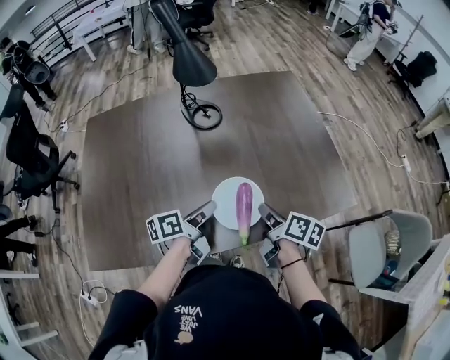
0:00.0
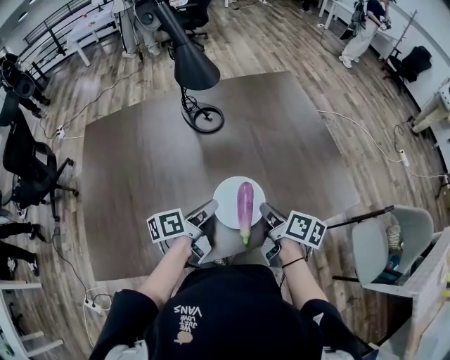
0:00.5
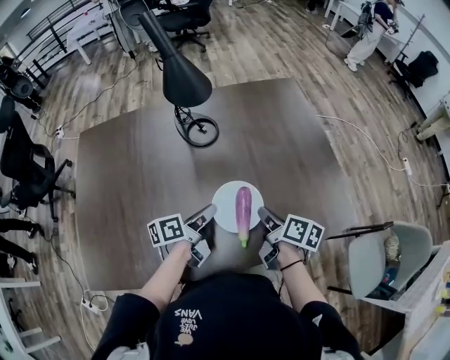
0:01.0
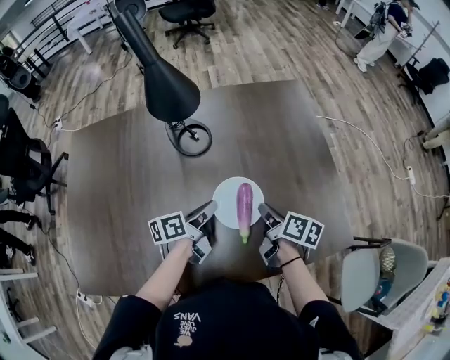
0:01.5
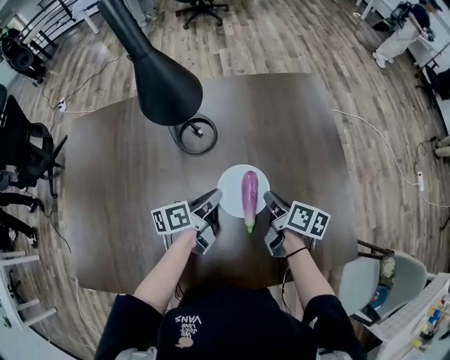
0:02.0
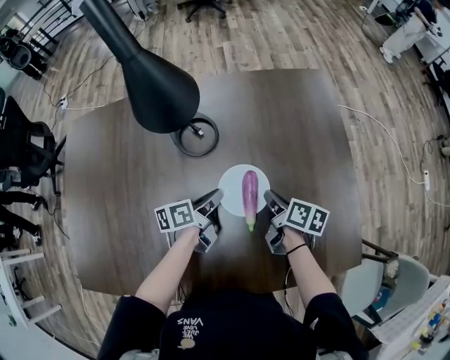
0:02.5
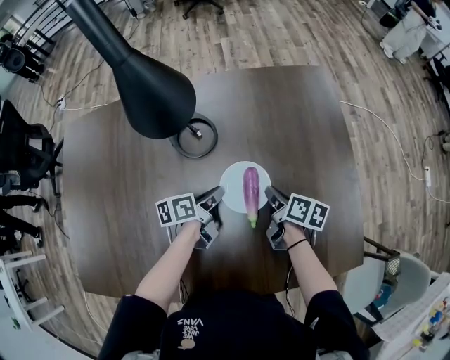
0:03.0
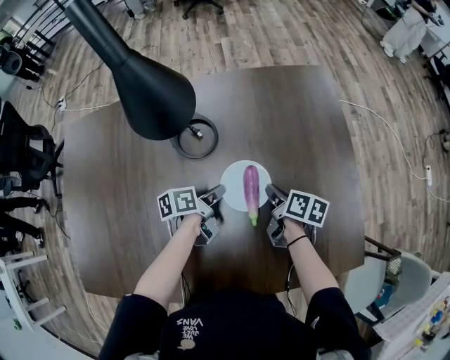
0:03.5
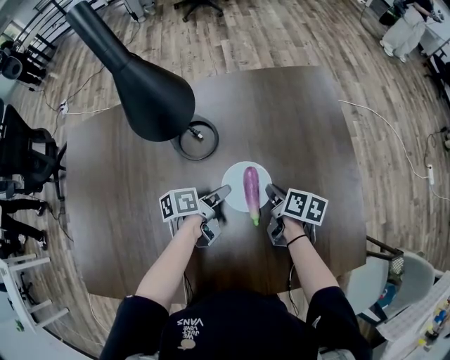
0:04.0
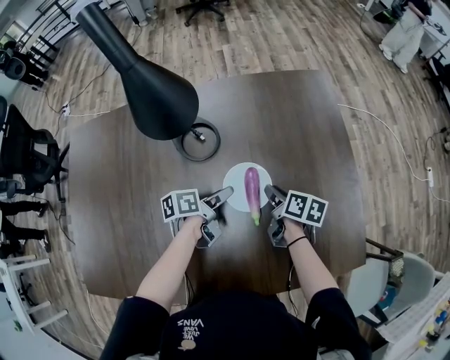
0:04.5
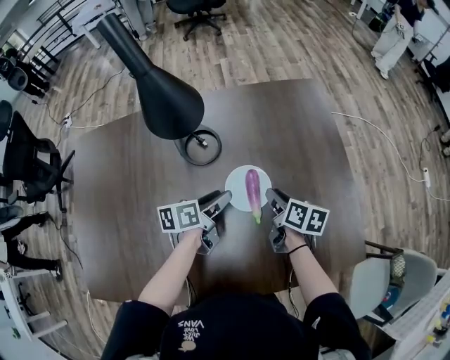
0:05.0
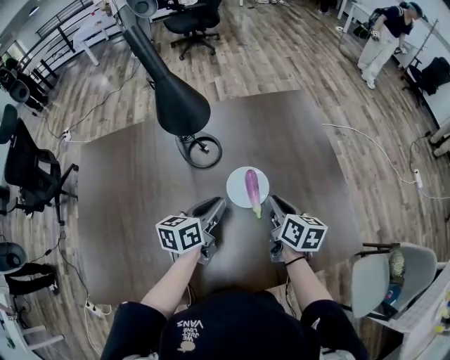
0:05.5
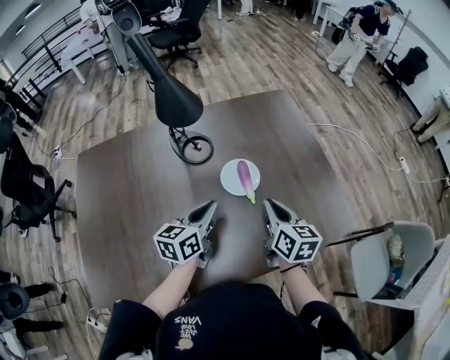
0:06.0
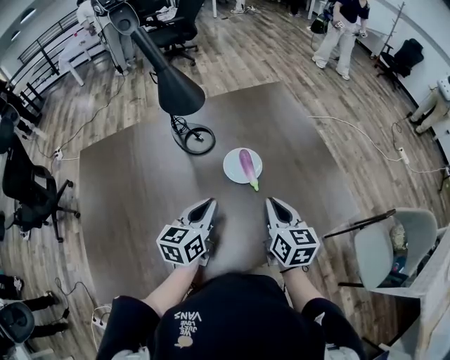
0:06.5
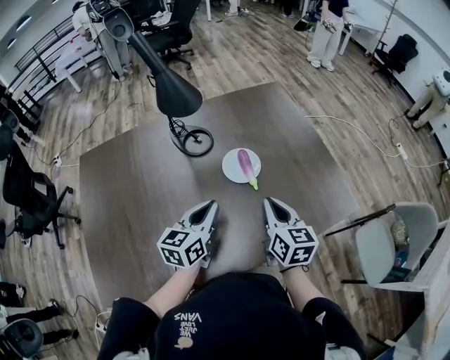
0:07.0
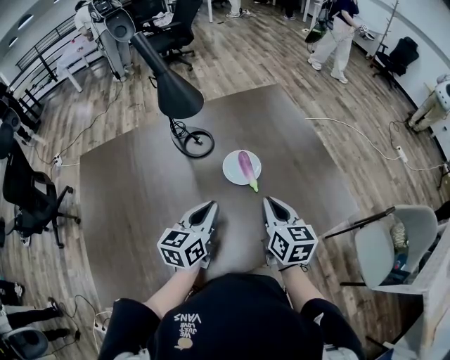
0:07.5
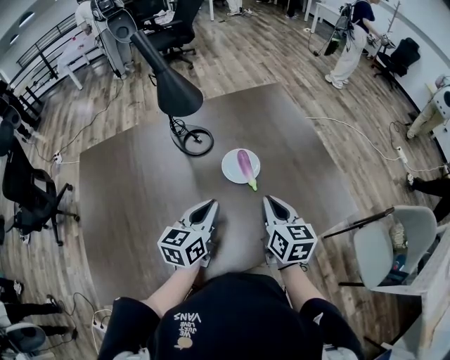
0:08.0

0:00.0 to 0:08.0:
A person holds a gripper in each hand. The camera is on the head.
0:00.0 to 0:02.0: Both grippers travel together forward, some 25 cm.
0:02.0 to 0:04.0: Both grippers travel together downward, some 5 cm. The left gripper opens its fingers.
0:04.0 to 0:06.0: The two grippers go approximately 25 cm upward and backward. The right gripper changes its angle by roughly 40 degrees, while the left gripper rotates around the line of its fingers by some 50 degrees, clockwise from behind, and closes its fingers.
0:06.0 to 0:08.0: The two grippers go about 5 cm backward.

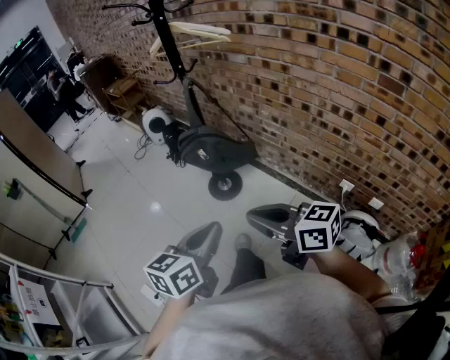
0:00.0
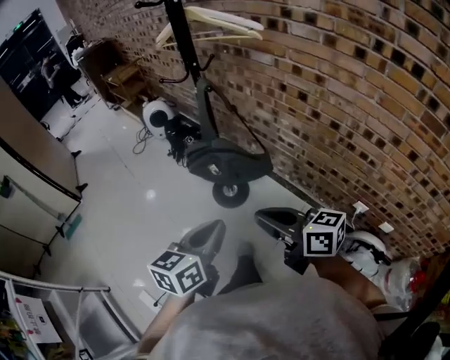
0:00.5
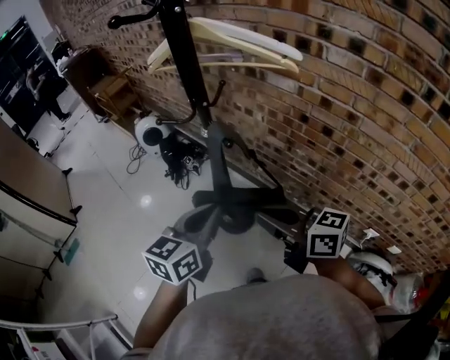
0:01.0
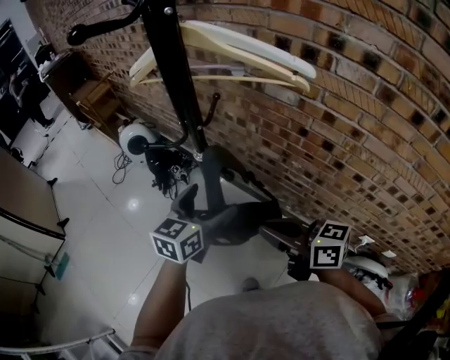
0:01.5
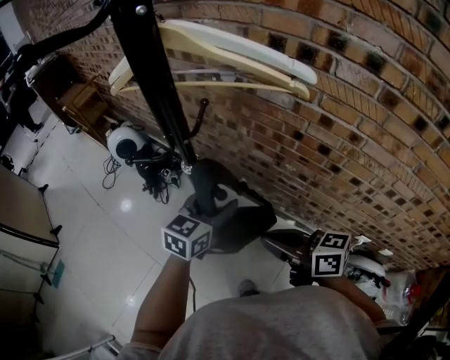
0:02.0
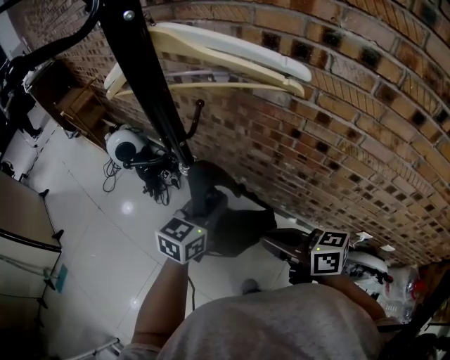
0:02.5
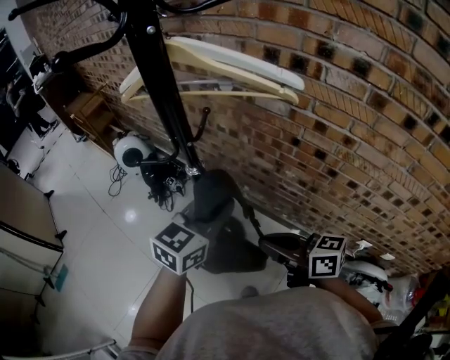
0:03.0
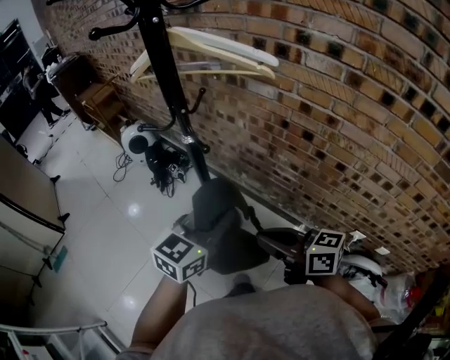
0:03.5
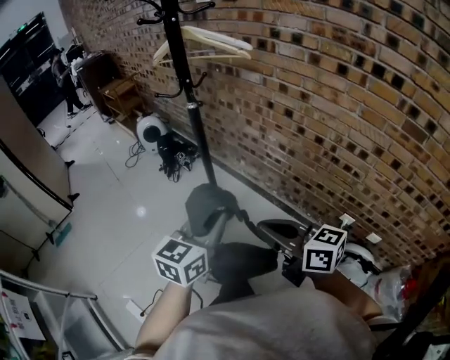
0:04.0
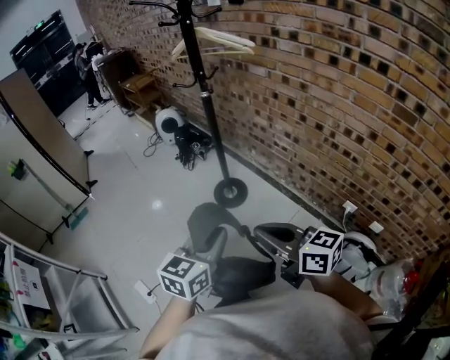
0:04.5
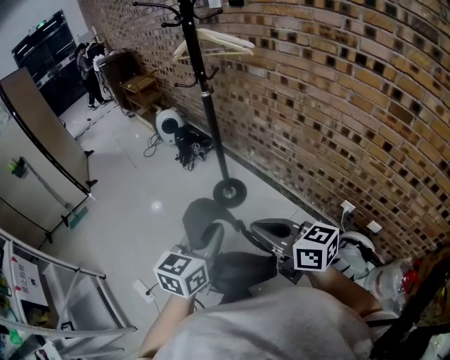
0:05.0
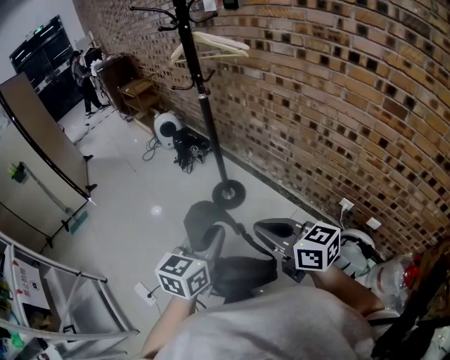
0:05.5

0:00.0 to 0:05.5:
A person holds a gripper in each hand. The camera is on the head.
0:00.0 to 0:02.0: The pair of grippers is taken forward, roughly 50 cm. The left gripper turns by approximately 20 degrees, and opens its fingers.
0:02.0 to 0:03.5: The right gripper moves backward, approximately 10 cm, while the left gripper travels backward and upward by some 20 cm, and closes up.
0:03.5 to 0:05.5: Both grippers move backward, some 35 cm. The left gripper swivels some 20 degrees.

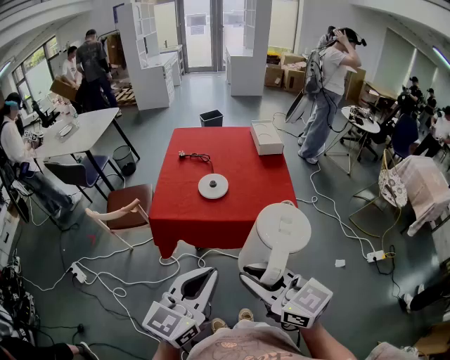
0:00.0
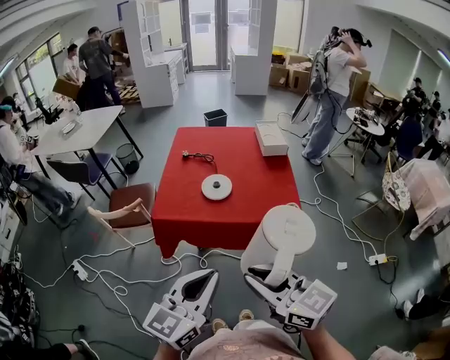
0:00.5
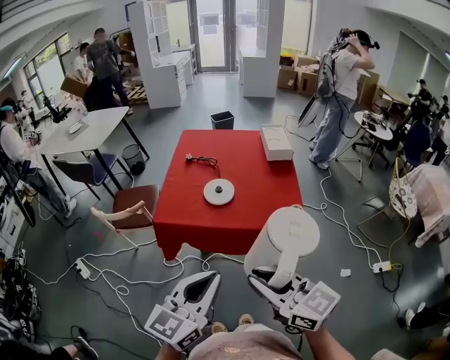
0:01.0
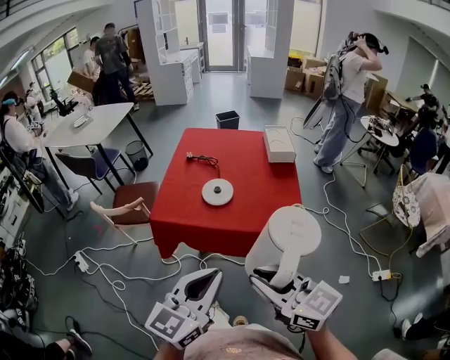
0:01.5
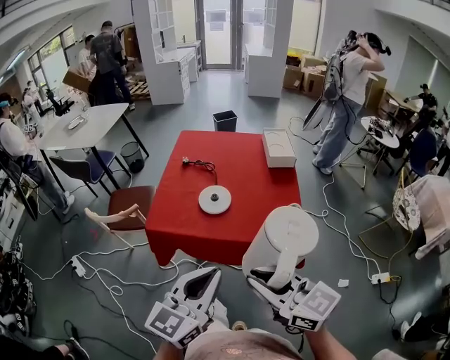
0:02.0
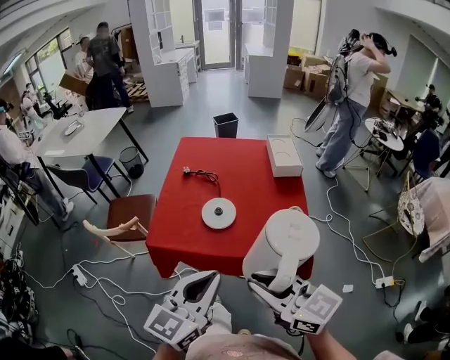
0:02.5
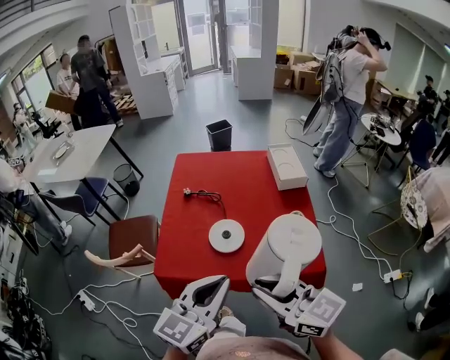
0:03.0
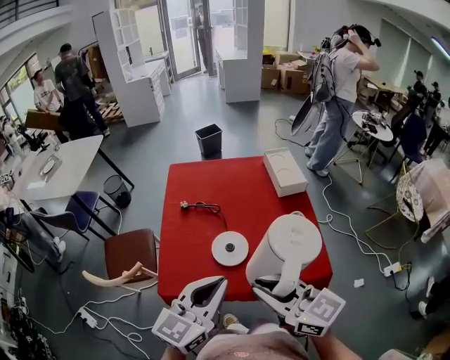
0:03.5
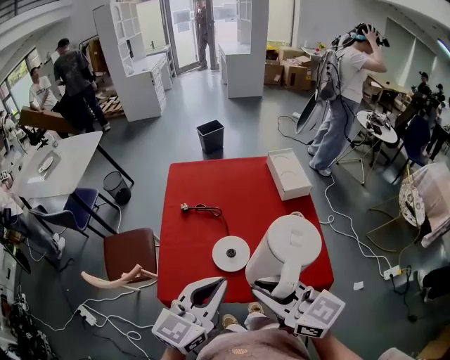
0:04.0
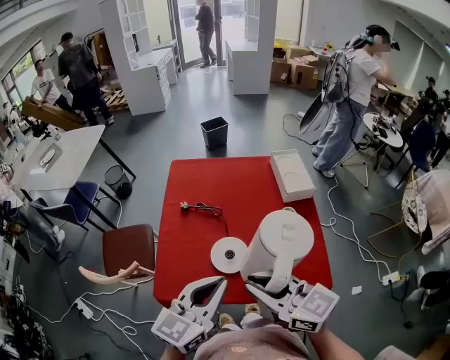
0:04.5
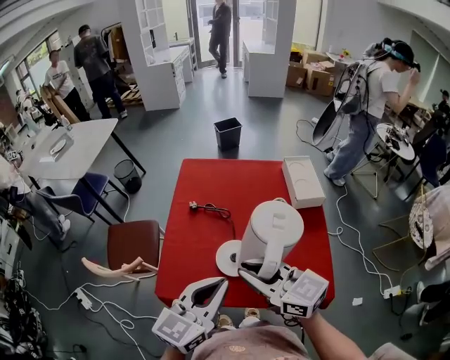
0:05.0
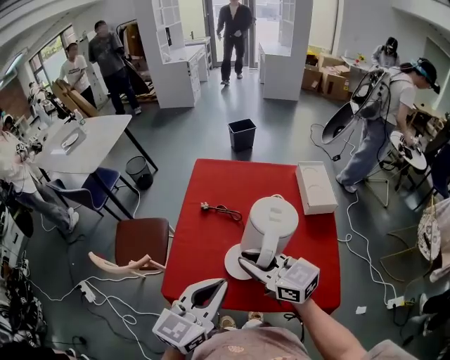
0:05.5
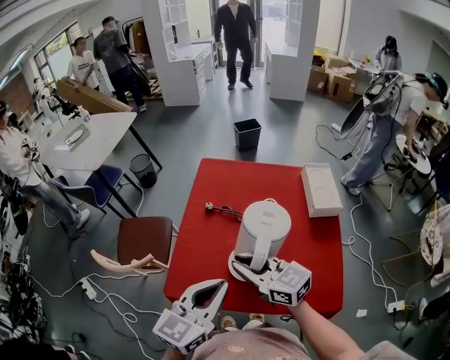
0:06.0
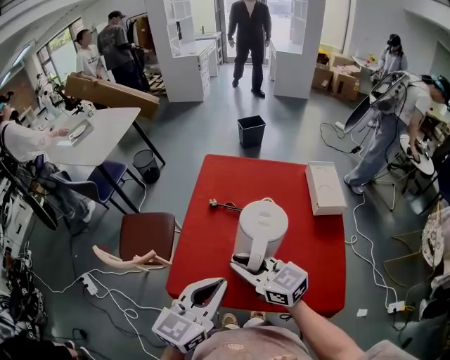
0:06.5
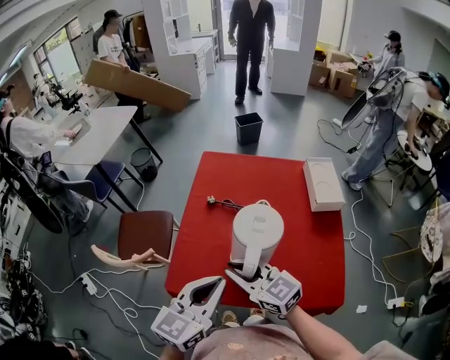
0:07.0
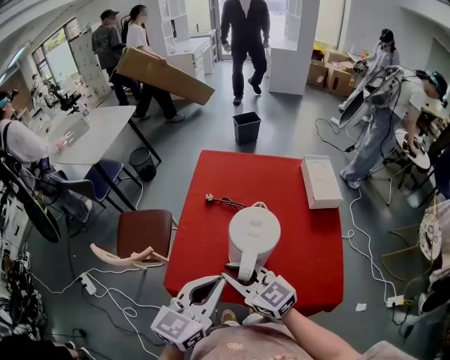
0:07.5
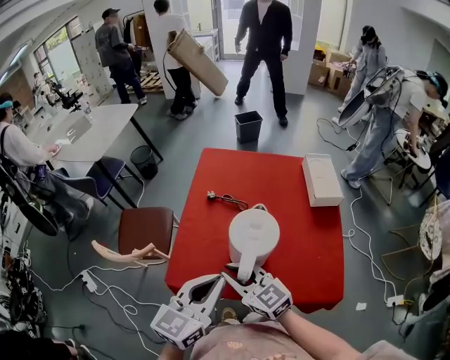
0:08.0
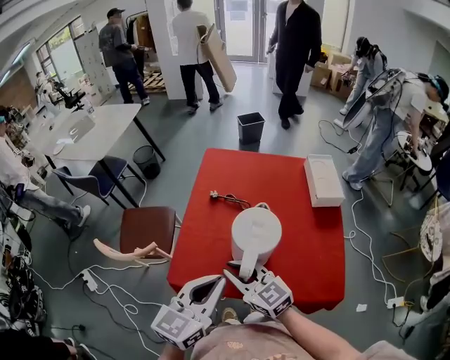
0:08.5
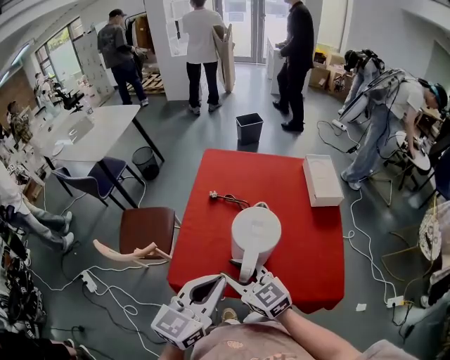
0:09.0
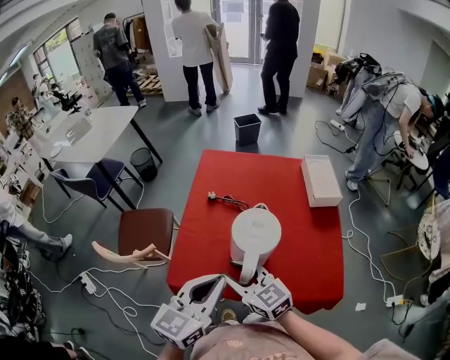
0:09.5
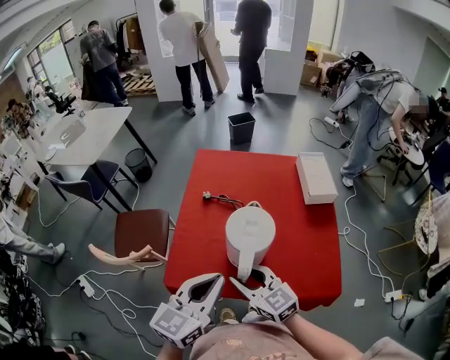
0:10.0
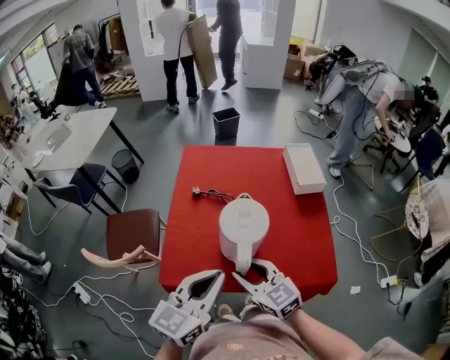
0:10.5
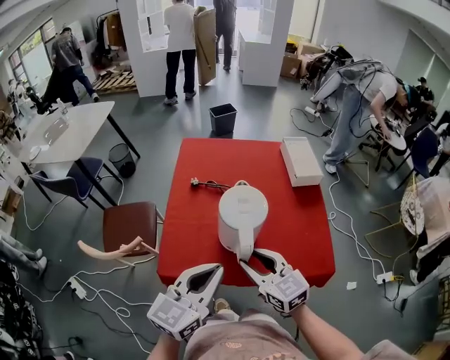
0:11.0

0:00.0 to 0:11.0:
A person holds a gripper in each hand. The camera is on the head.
0:00.0 to 0:02.0: The two grippers go some 10 cm forward and to the right.
0:02.0 to 0:03.5: The two grippers go about 20 cm forward.
0:03.5 to 0:05.5: The left gripper heads forward, covering approximately 5 cm, while the right gripper shifts about 15 cm forward and downward.
0:05.5 to 0:07.5: The right gripper moves to the left, some 10 cm.
0:07.5 to 0:09.0: The right gripper opens.
0:09.0 to 0:11.0: The right gripper heads to the right, covering about 10 cm.

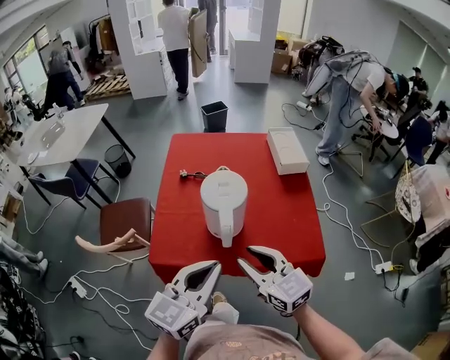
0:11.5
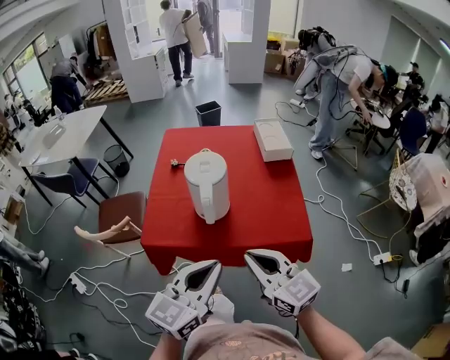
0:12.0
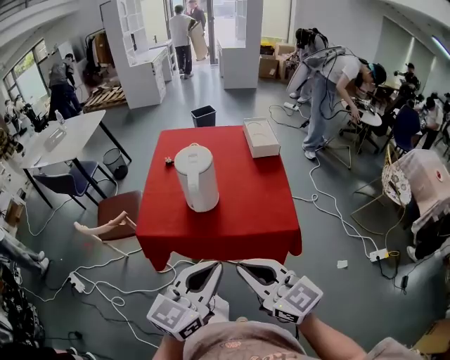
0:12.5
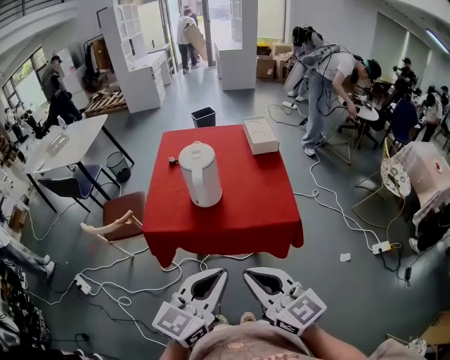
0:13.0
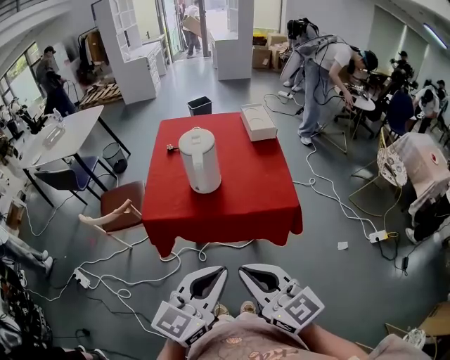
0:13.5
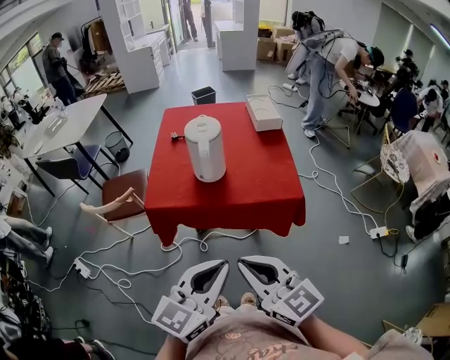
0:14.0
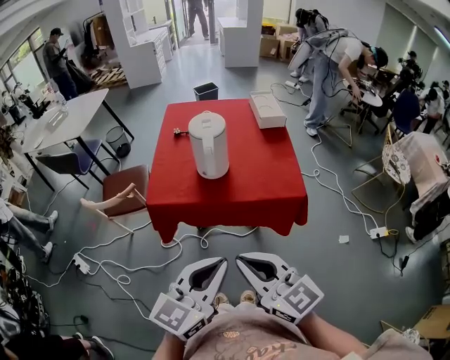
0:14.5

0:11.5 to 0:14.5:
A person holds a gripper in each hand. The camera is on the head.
0:11.5 to 0:13.0: The right gripper is displaced backward by some 25 cm, and closes up; the left gripper travels backward and to the right by approximately 20 cm.
0:13.0 to 0:14.5: The right gripper travels to the left by roughly 5 cm. The left gripper changes place by about 5 cm.
